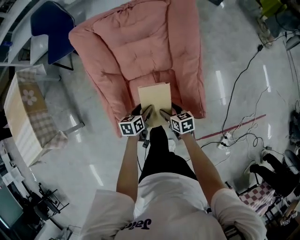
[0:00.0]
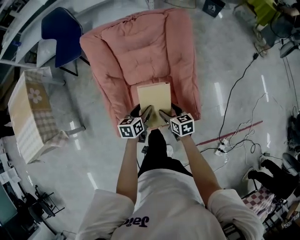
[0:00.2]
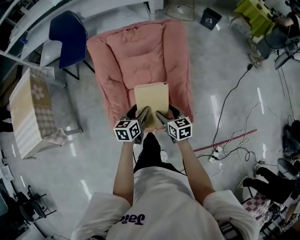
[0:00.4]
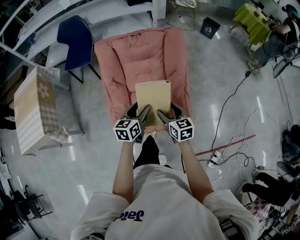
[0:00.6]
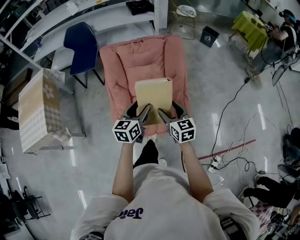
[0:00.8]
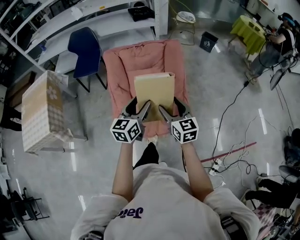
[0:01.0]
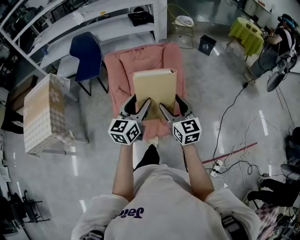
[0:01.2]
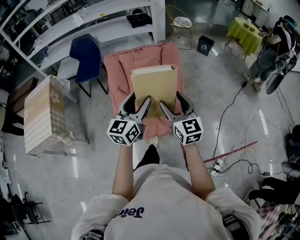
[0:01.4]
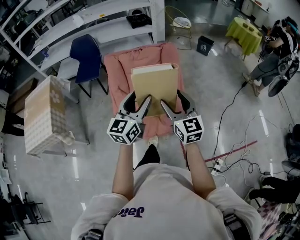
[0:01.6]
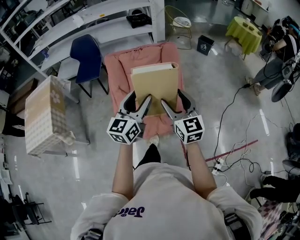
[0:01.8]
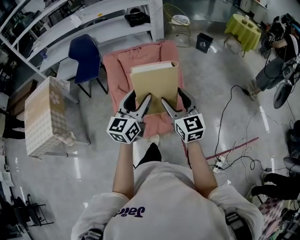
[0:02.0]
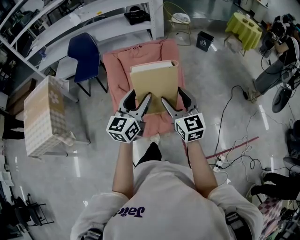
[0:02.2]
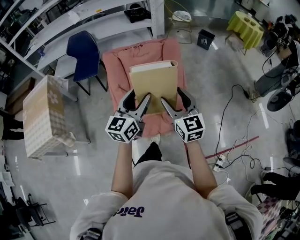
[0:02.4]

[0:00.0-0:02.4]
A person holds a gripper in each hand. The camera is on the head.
0:00.0 to 0:01.2: Both grippers move upward, approximately 40 cm. The left gripper tilts its fingers about 40 degrees upward, while the right gripper points its fingers roughly 40 degrees further upward.
0:01.2 to 0:02.4: The grippers stay close to where they were, moving slightly.

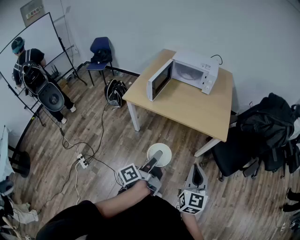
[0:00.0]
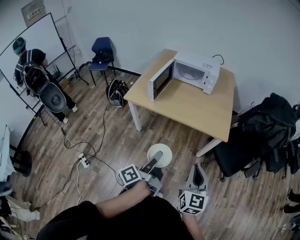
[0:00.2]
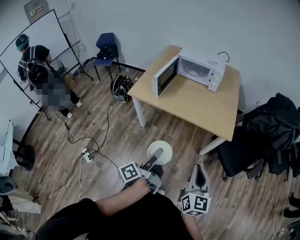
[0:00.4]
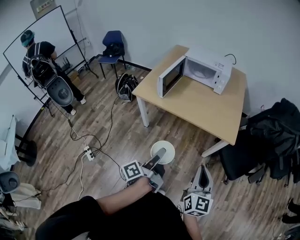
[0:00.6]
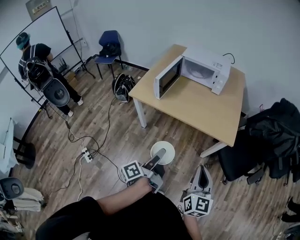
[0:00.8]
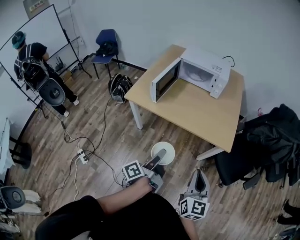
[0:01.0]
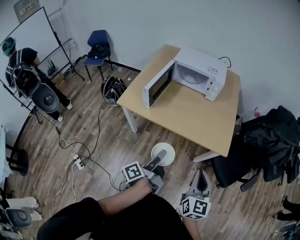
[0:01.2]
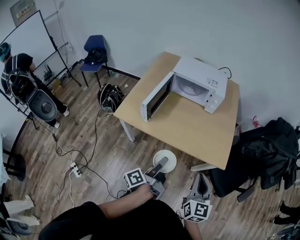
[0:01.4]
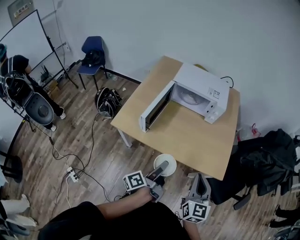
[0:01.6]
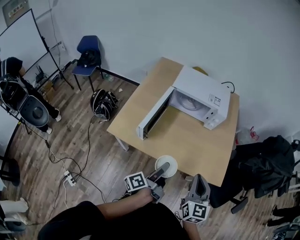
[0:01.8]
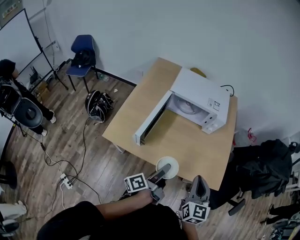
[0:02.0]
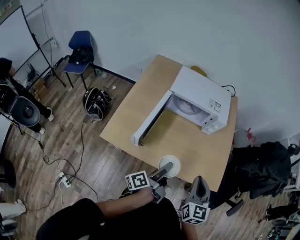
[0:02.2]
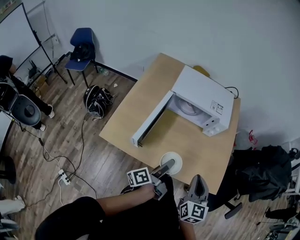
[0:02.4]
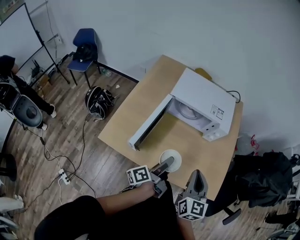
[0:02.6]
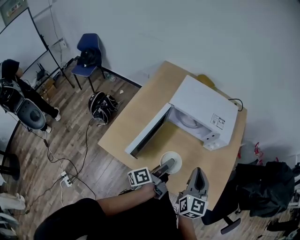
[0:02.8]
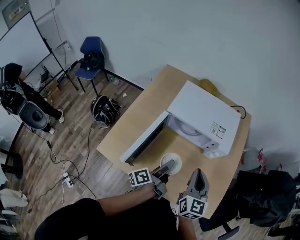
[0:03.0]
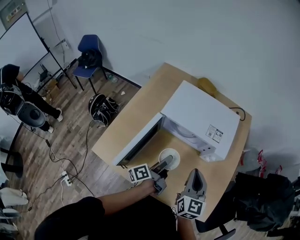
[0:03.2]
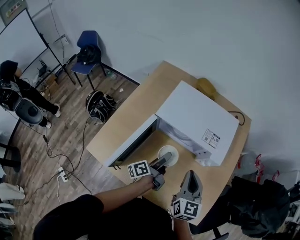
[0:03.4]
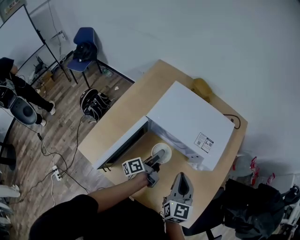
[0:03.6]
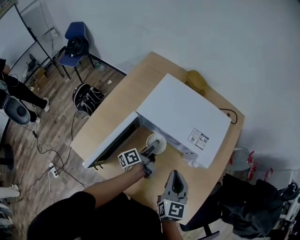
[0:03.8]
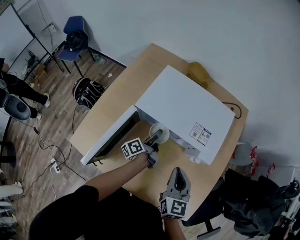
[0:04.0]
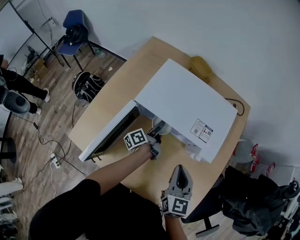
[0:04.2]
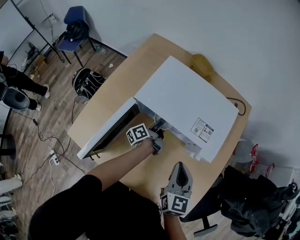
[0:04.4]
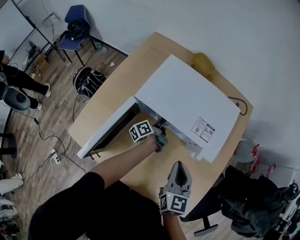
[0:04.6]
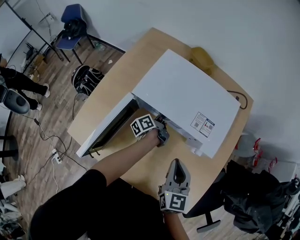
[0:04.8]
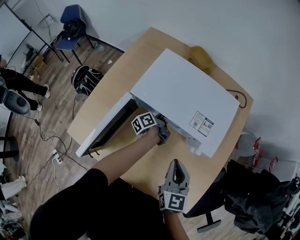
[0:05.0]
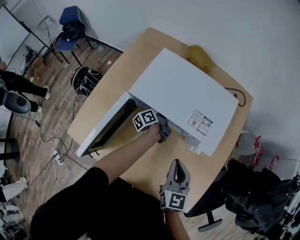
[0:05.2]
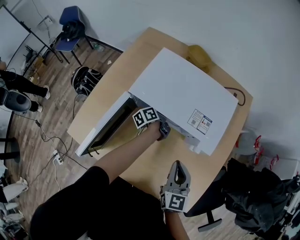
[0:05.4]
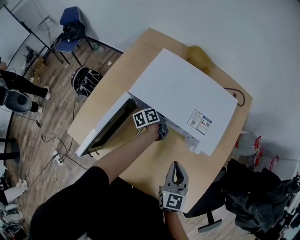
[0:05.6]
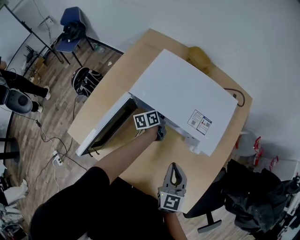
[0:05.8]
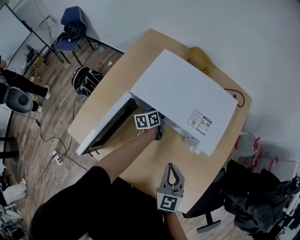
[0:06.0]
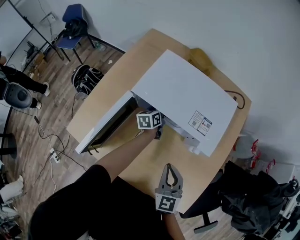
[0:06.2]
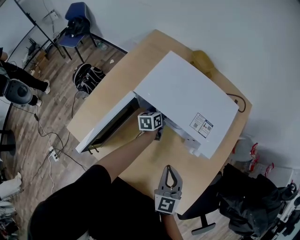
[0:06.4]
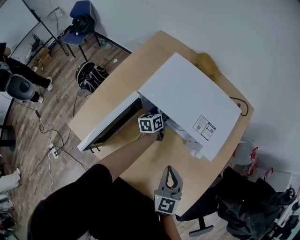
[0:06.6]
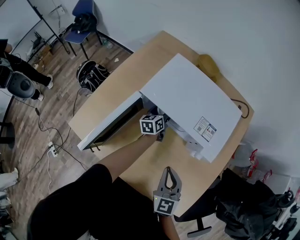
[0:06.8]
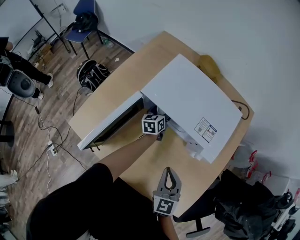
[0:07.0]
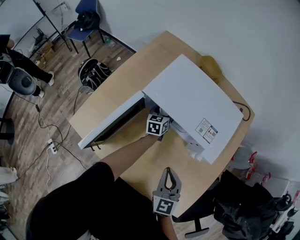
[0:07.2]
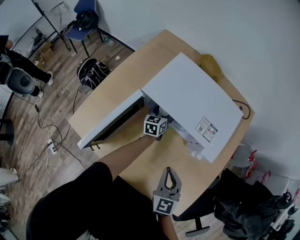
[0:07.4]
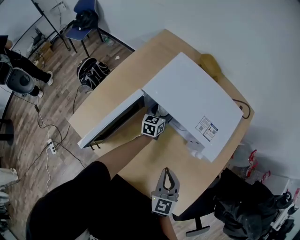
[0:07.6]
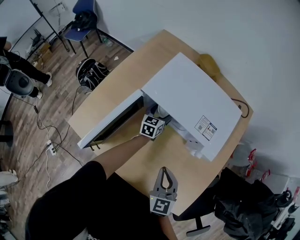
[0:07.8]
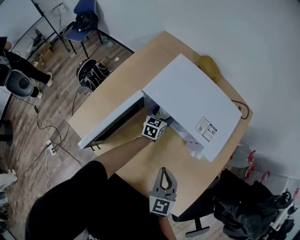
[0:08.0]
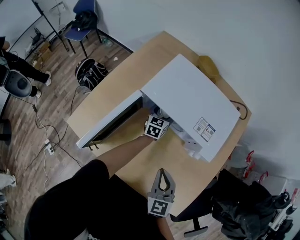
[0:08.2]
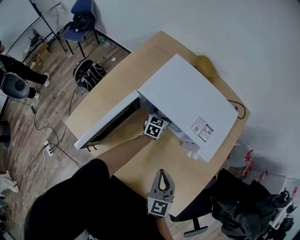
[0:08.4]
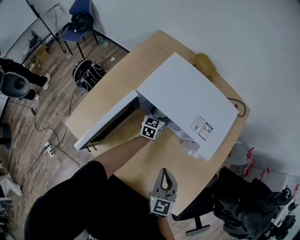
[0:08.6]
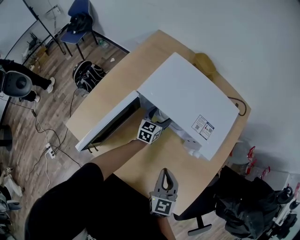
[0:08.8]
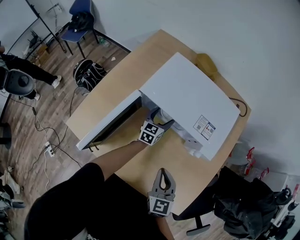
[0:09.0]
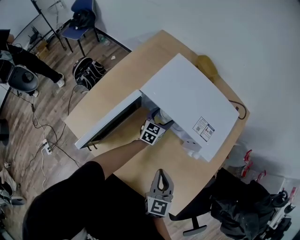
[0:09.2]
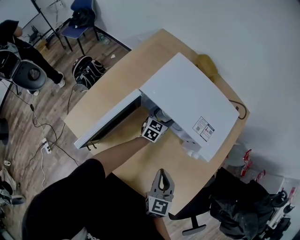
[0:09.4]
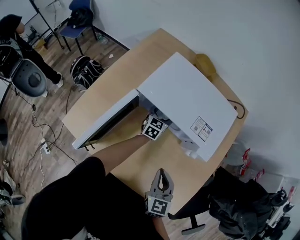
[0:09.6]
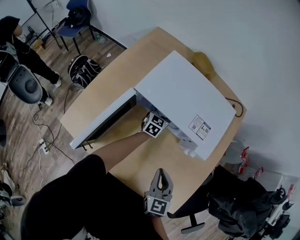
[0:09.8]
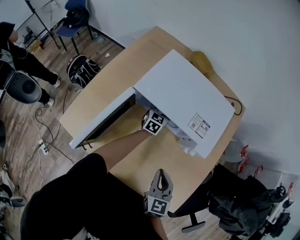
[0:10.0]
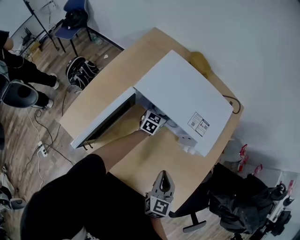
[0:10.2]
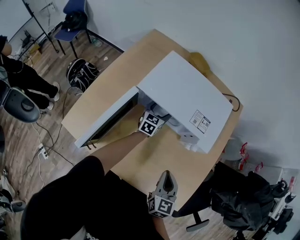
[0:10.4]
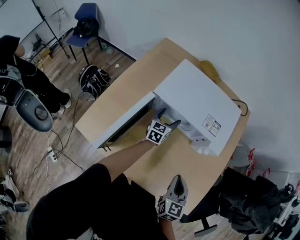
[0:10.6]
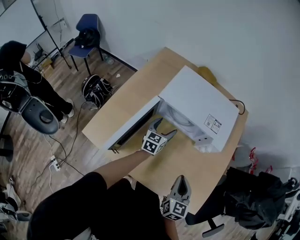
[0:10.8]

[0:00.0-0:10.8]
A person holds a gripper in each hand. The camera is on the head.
0:00.0 to 0:01.6: Both grippers move forward, approximately 25 cm.
0:01.6 to 0:03.0: The two grippers go about 30 cm forward.
0:03.0 to 0:04.6: The right gripper is displaced forward and downward by some 10 cm, while the left gripper goes approximately 30 cm forward and downward.
0:04.6 to 0:06.2: The right gripper moves some 5 cm. Meanwhile the left gripper twists approximately 40 degrees clockwise, seen from behind.
0:06.2 to 0:07.8: The left gripper changes its angle by roughly 20 degrees, and opens its fingers.
0:07.8 to 0:09.2: There are only small adjustments of the grippers.
0:09.2 to 0:10.8: The left gripper goes about 10 cm backward and upward, while the right gripper is displaced backward by about 5 cm.

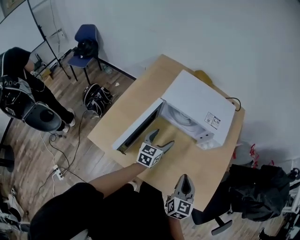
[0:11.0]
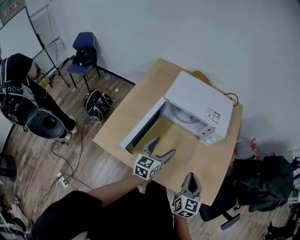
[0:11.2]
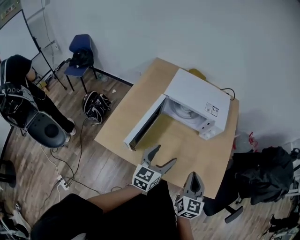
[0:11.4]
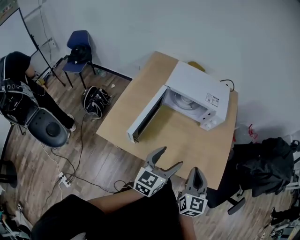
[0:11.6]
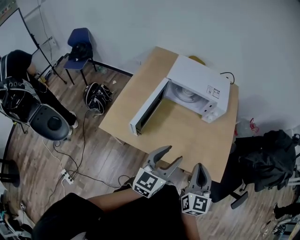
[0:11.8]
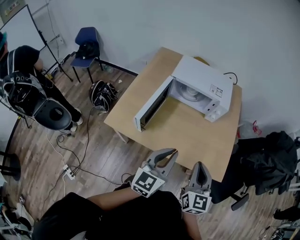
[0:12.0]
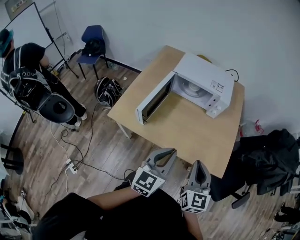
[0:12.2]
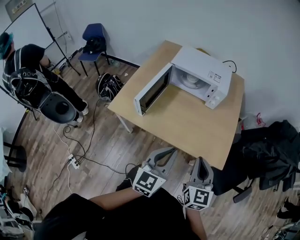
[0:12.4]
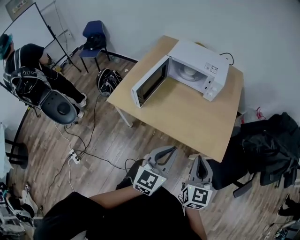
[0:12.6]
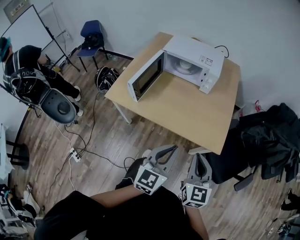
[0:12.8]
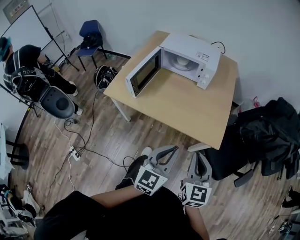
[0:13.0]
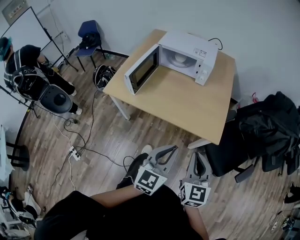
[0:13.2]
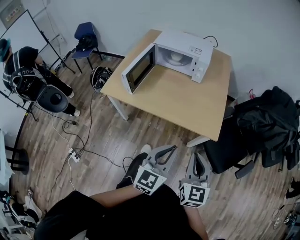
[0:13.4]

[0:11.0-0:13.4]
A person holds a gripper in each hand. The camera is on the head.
0:11.0 to 0:12.2: The right gripper moves backward and upward, approximately 20 cm. Meanwhile the left gripper shifts some 35 cm backward and upward, and closes up.
0:12.2 to 0:13.4: The right gripper travels backward and to the right by approximately 20 cm. The left gripper heads to the right and backward, covering roughly 25 cm.

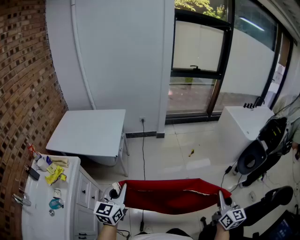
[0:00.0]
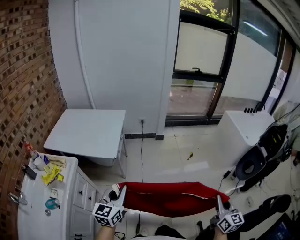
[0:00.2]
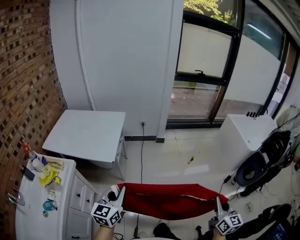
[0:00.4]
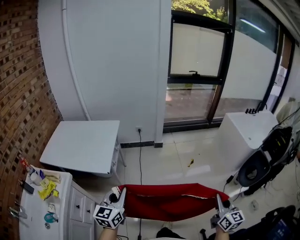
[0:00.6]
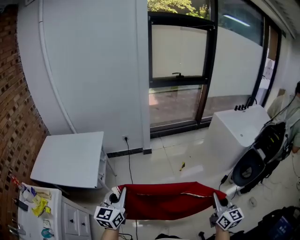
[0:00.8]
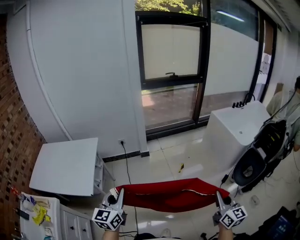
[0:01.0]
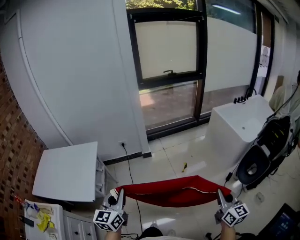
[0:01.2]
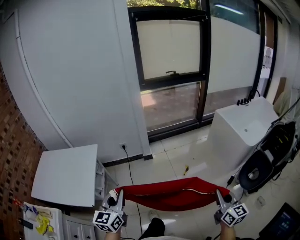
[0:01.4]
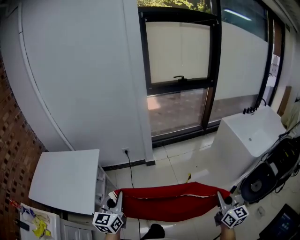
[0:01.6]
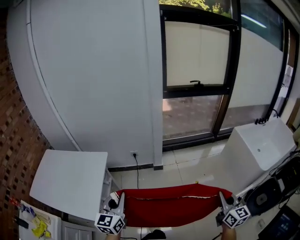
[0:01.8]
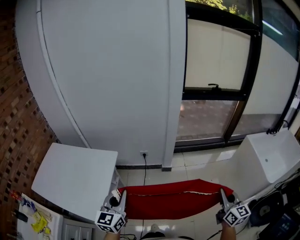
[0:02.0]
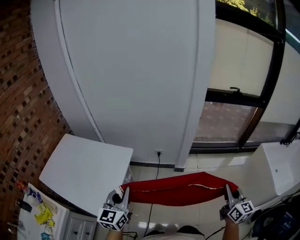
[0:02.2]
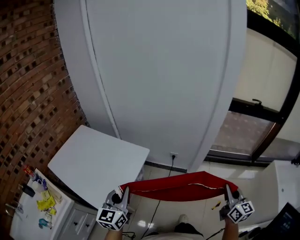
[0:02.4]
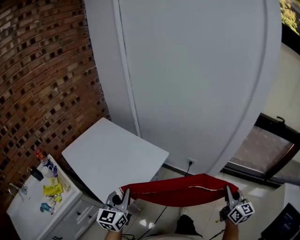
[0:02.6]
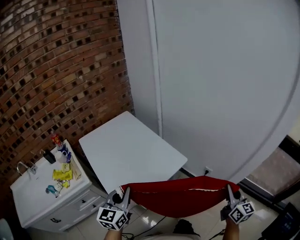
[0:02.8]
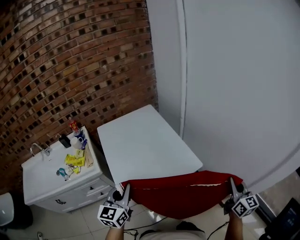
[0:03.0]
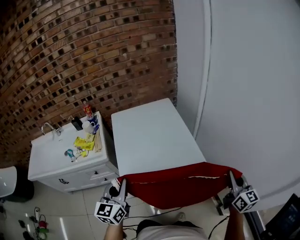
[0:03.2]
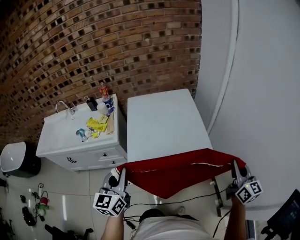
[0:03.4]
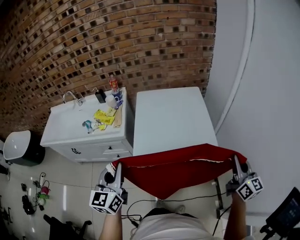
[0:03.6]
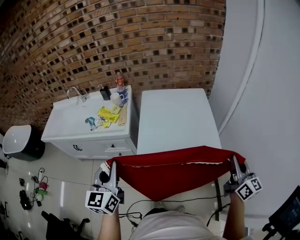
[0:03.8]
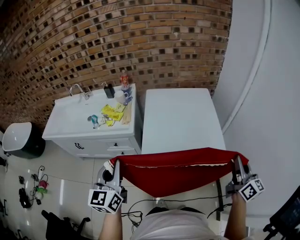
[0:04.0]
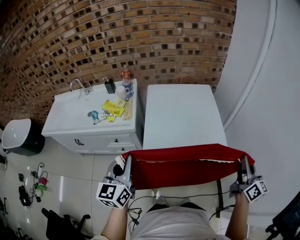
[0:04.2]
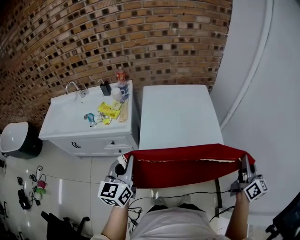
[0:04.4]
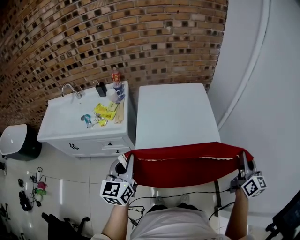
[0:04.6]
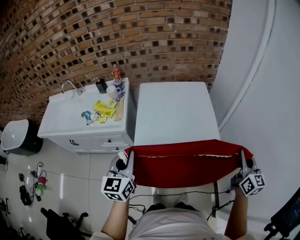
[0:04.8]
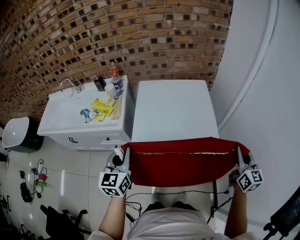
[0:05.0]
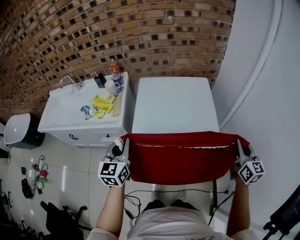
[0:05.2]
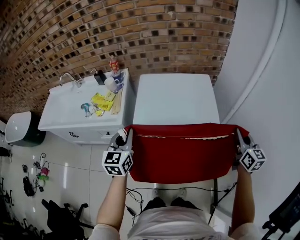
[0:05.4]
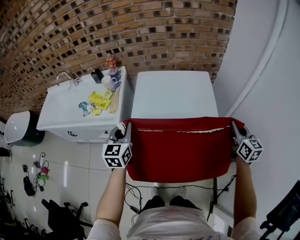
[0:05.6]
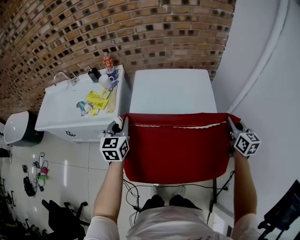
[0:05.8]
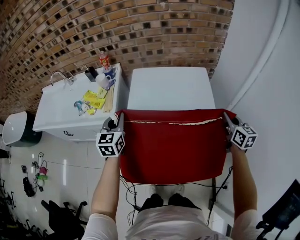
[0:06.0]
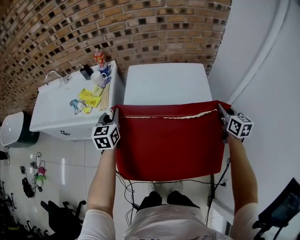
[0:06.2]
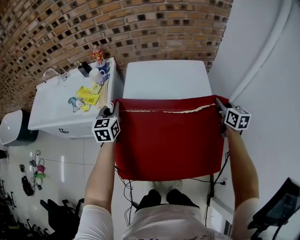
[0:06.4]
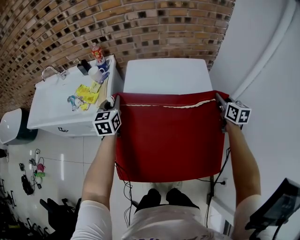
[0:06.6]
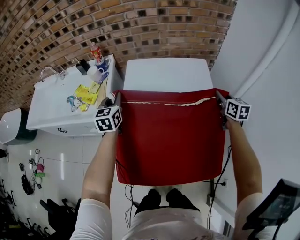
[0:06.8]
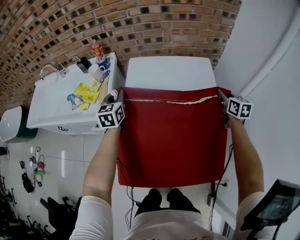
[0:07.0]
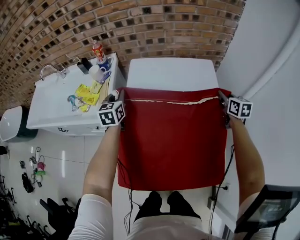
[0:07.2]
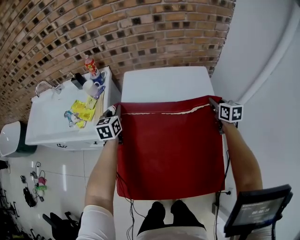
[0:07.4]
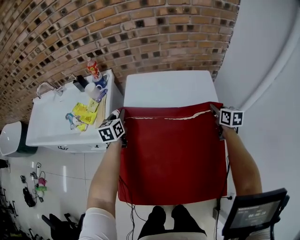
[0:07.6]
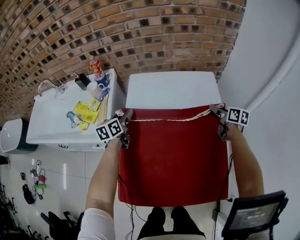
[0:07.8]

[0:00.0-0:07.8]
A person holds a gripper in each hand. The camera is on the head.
0:00.0 to 0:01.6: Both grippers move forward, about 40 cm.
0:01.6 to 0:03.2: The left gripper changes place by some 35 cm, and turns by roughly 80 degrees; the right gripper ends up roughly 80 cm from where it was, and changes its angle by some 80 degrees.
0:03.2 to 0:04.6: The left gripper goes approximately 5 cm to the left. The right gripper goes approximately 15 cm forward.
0:04.6 to 0:06.2: Both grippers move forward, roughly 25 cm. The right gripper turns by approximately 20 degrees.
0:06.2 to 0:07.8: Both grippers travel together forward and downward, some 20 cm. The right gripper turns by approximately 20 degrees, and opens up; the left gripper turns by about 30 degrees, and opens.
